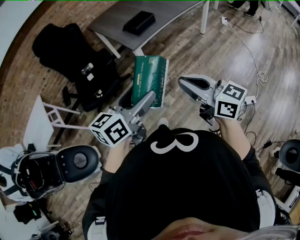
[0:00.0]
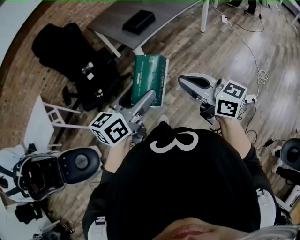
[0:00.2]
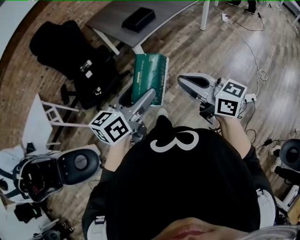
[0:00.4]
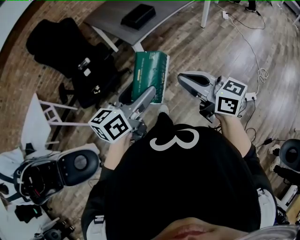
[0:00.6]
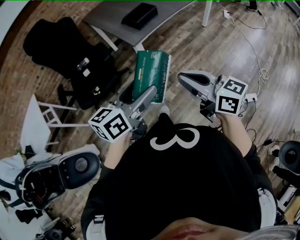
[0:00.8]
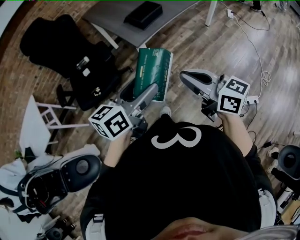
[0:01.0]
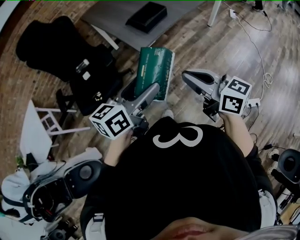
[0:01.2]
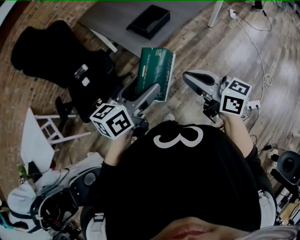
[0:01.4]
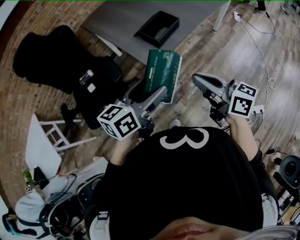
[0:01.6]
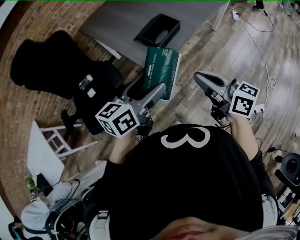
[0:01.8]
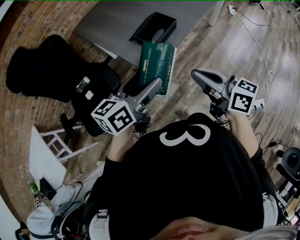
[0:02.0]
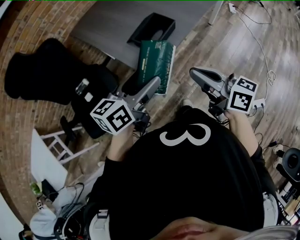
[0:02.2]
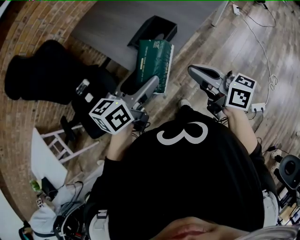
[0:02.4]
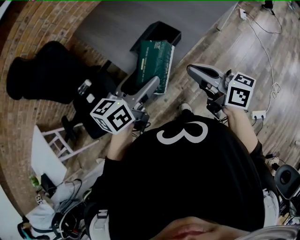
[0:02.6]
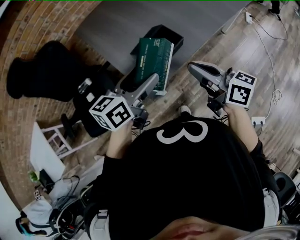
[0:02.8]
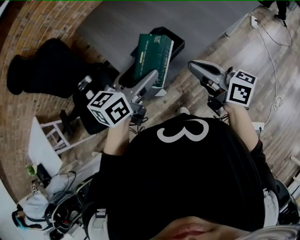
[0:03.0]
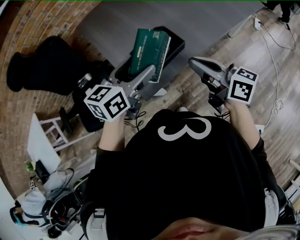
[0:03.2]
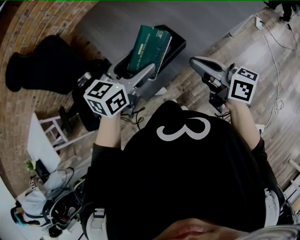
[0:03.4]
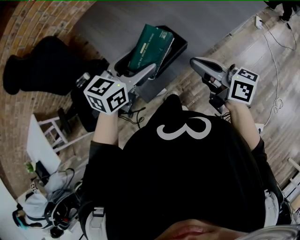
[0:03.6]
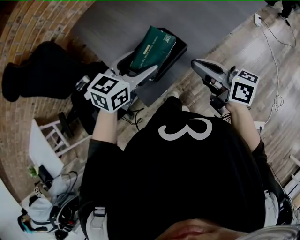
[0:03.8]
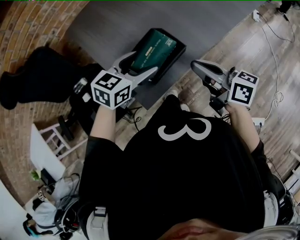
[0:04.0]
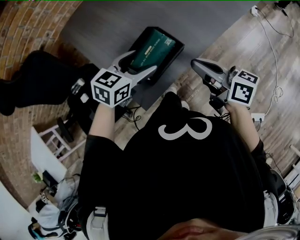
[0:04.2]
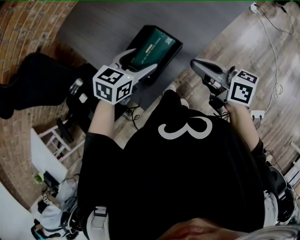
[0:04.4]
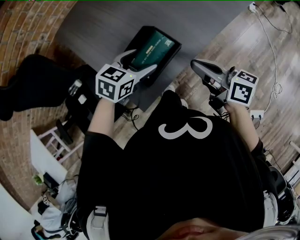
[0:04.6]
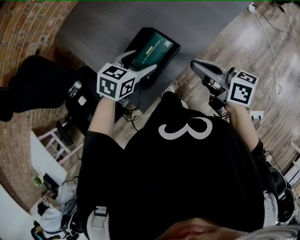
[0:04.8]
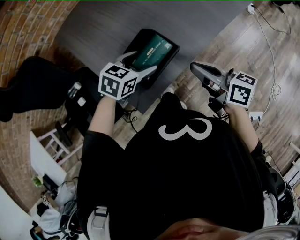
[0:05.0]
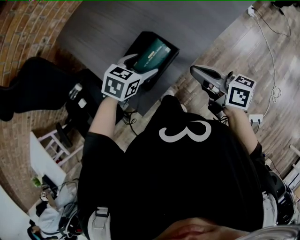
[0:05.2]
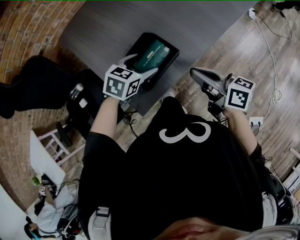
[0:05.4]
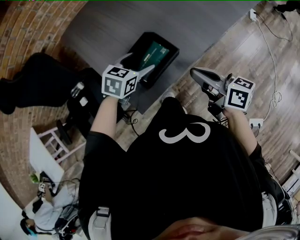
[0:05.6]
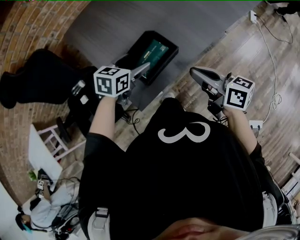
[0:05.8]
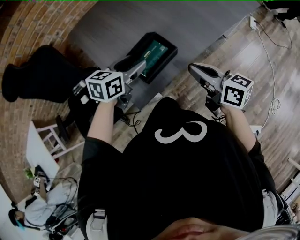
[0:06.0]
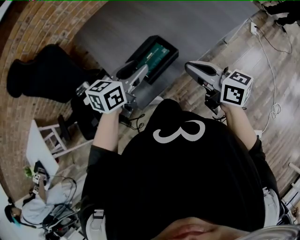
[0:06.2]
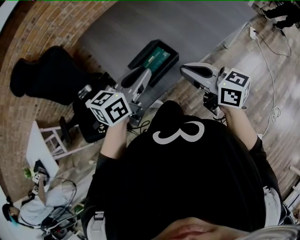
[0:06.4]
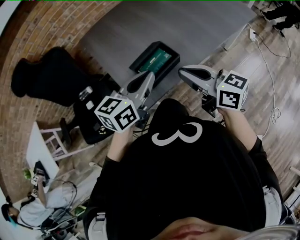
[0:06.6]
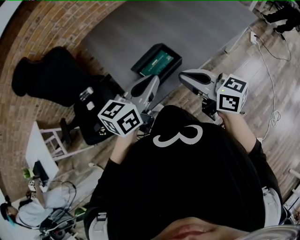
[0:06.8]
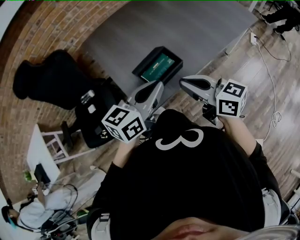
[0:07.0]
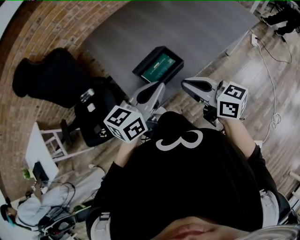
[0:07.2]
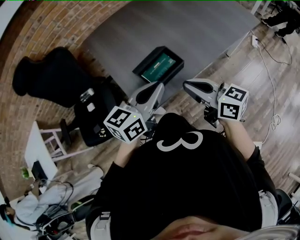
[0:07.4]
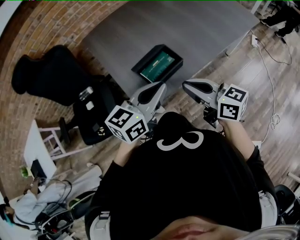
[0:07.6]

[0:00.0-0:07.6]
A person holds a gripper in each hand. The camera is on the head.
0:00.0 to 0:01.6: The two grippers go about 30 cm forward.
0:01.6 to 0:03.0: Both grippers travel together forward, roughly 25 cm.
0:03.0 to 0:04.6: The left gripper moves downward and forward, roughly 15 cm, and swivels roughly 40 degrees, while the right gripper is displaced downward and forward by some 10 cm.
0:04.6 to 0:06.0: The left gripper is displaced upward by some 5 cm, and turns by about 20 degrees.
0:06.0 to 0:07.6: The right gripper shifts approximately 5 cm to the left. Meanwhile the left gripper heads backward and upward, covering approximately 15 cm, changes its angle by about 20 degrees, and closes.
